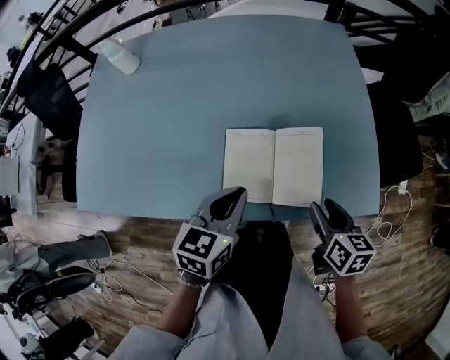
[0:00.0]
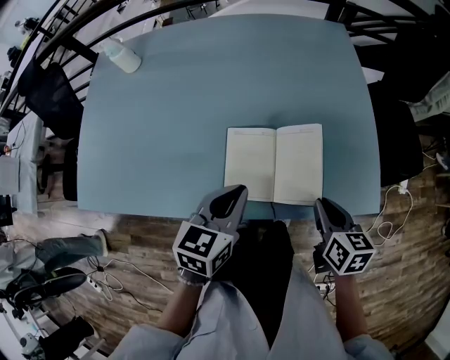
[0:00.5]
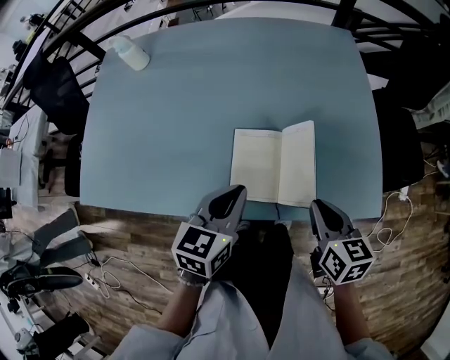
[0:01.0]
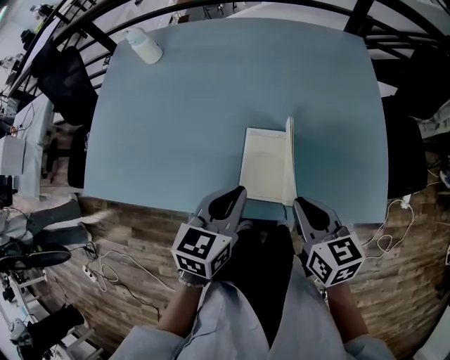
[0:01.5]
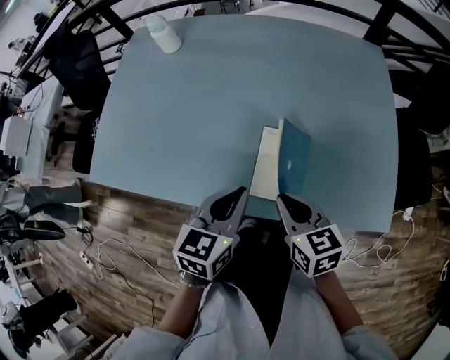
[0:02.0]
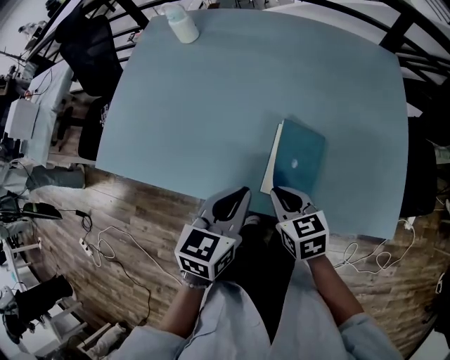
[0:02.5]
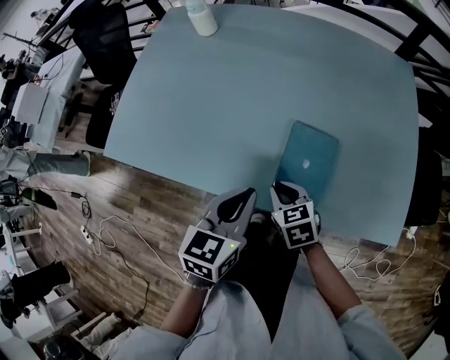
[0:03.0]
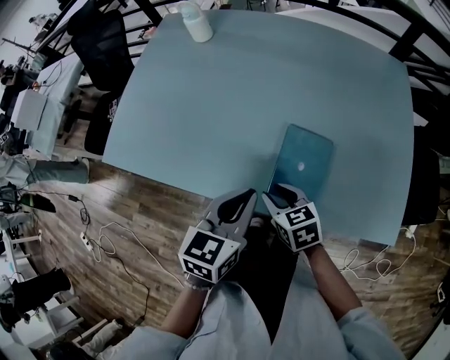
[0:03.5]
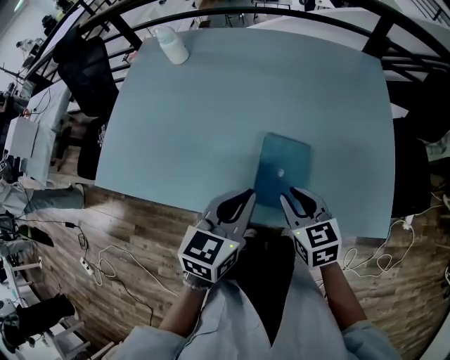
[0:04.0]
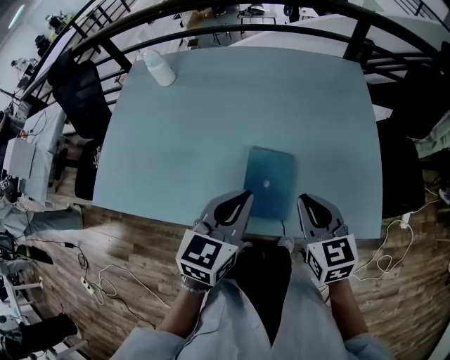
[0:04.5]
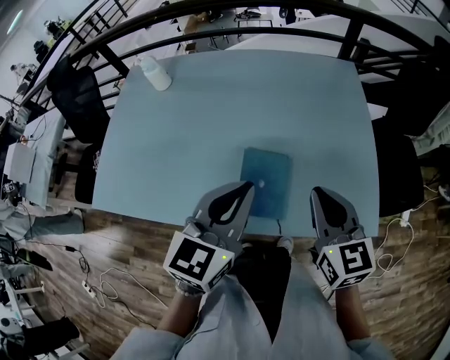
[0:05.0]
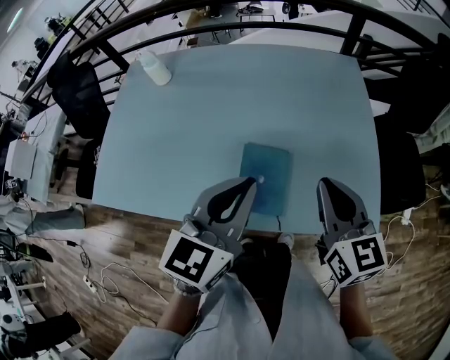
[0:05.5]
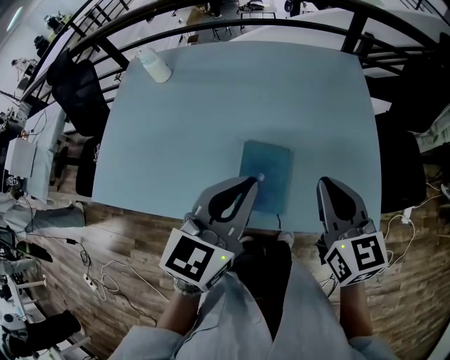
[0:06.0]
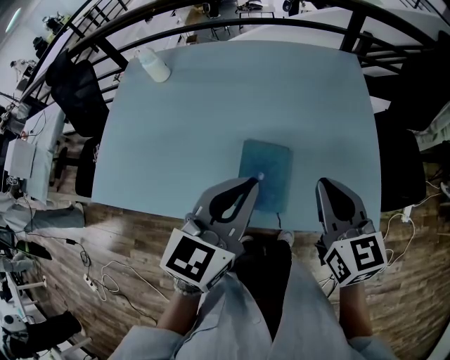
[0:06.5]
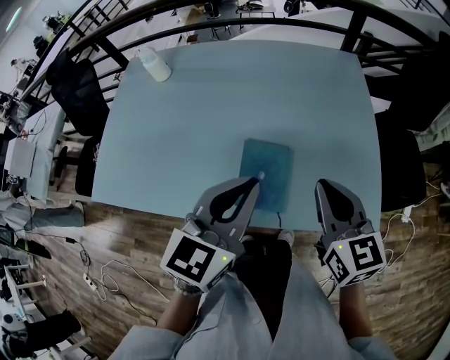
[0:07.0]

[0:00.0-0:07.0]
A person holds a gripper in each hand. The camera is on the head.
0:00.0 to 0:02.0: The right gripper shifts approximately 20 cm to the left, changes its angle by about 30 degrees, and closes its fingers; the left gripper heads to the left, covering roughly 5 cm.
0:02.0 to 0:03.5: The right gripper moves to the left and downward, roughly 10 cm, and opens its fingers.
0:03.5 to 0:05.0: The left gripper travels upward and to the right by approximately 15 cm, and swivels approximately 20 degrees. Meanwhile the right gripper is displaced upward and to the right by roughly 30 cm, swivels roughly 40 degrees, and closes.
0:05.0 to 0:07.0: The grippers stay close to where they were, moving slightly.

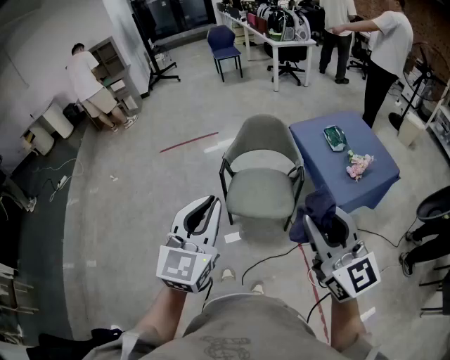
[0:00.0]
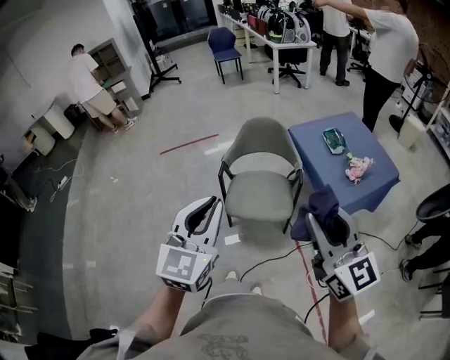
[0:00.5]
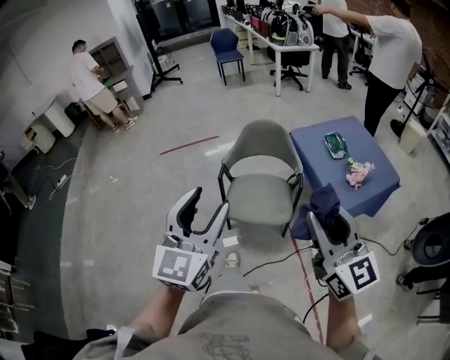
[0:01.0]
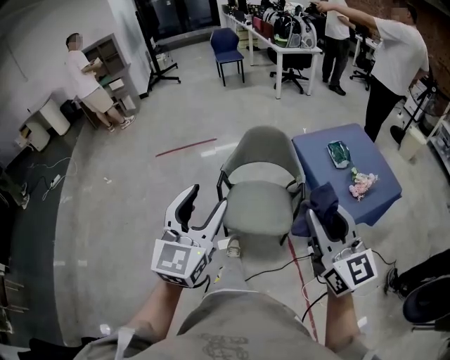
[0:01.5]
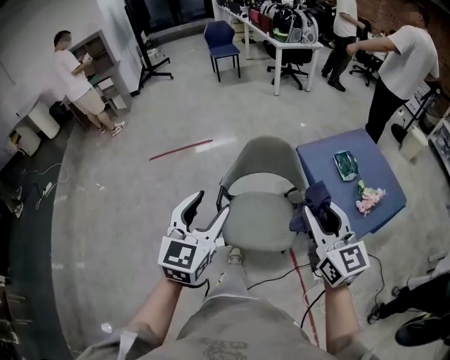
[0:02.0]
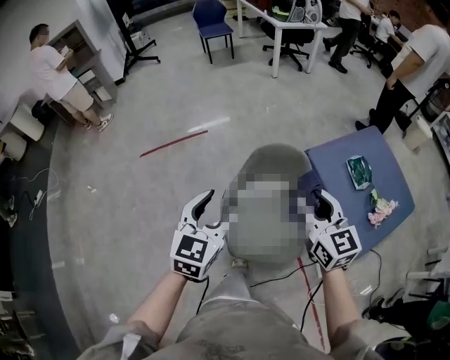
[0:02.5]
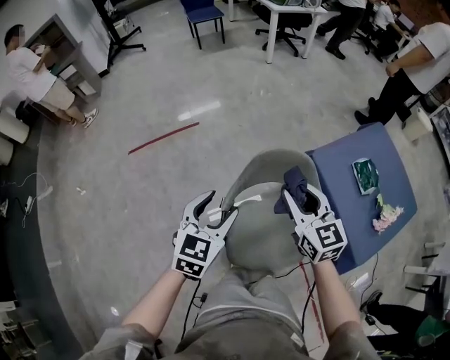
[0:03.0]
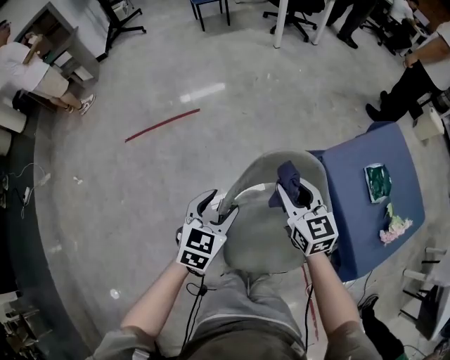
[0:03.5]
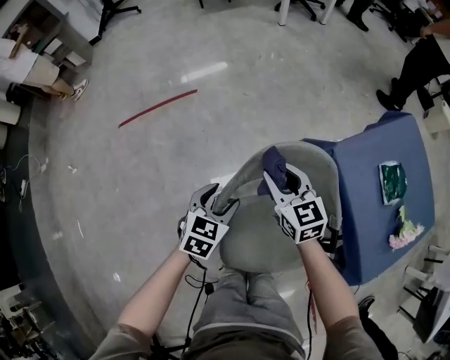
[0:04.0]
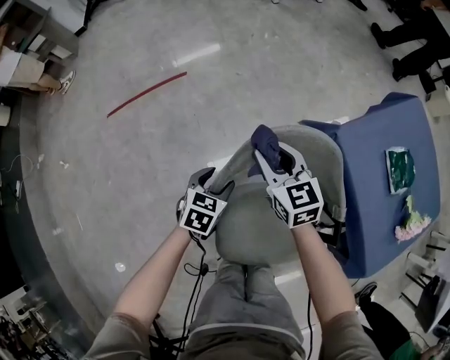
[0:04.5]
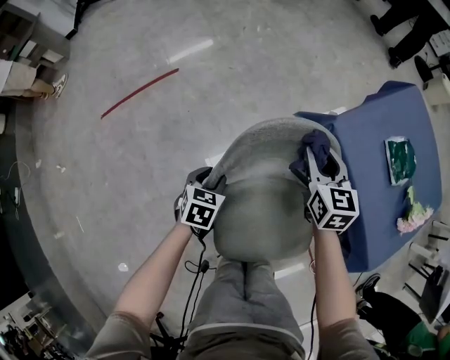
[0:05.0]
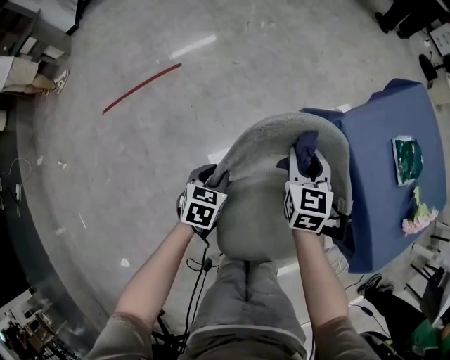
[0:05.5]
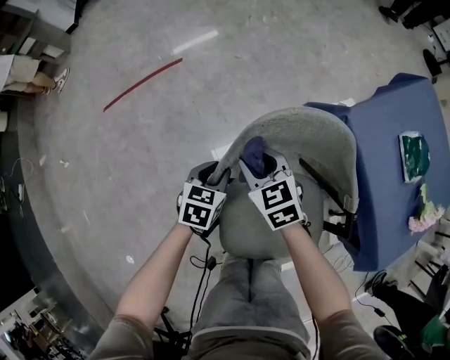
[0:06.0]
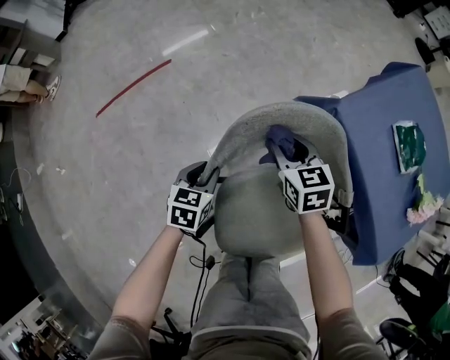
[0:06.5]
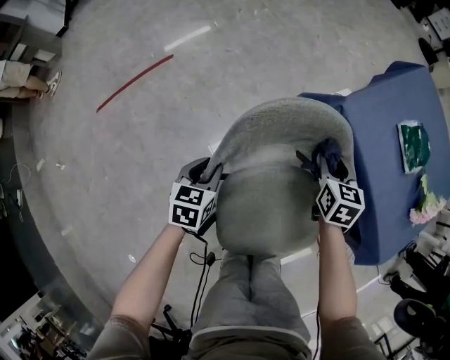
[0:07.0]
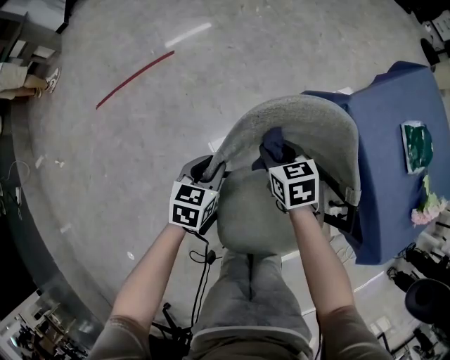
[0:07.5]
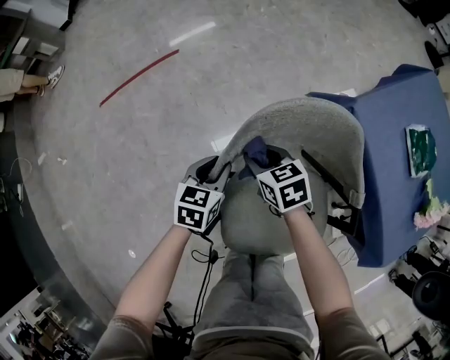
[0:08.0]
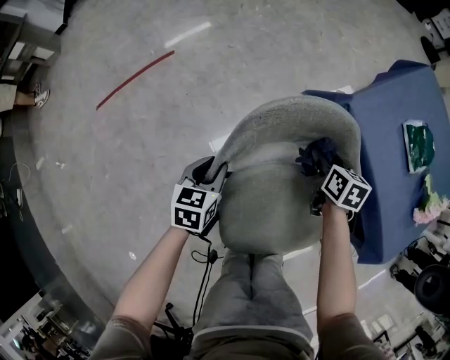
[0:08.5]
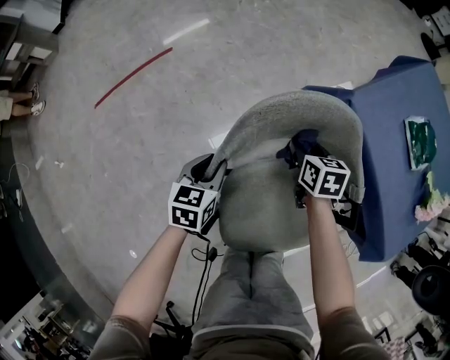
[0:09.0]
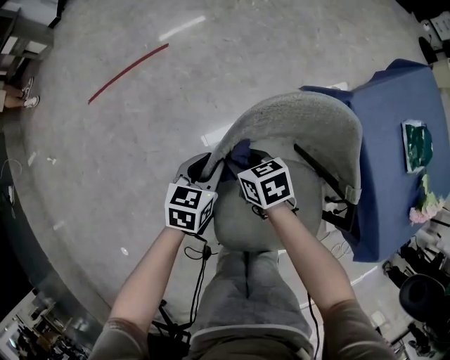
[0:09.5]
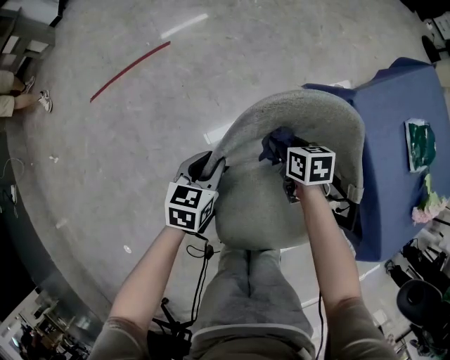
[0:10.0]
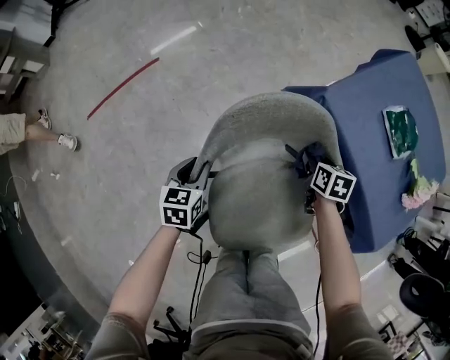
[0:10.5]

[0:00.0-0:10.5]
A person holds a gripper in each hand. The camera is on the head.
0:00.0 to 0:02.0: The grippers both shift forward by about 25 cm. The left gripper opens up.
0:02.0 to 0:04.0: The right gripper shifts approximately 50 cm forward and downward, and swivels about 20 degrees, while the left gripper goes some 50 cm downward and forward, and angles its fingers downward, by about 30 degrees.
0:04.0 to 0:06.5: The left gripper goes about 15 cm downward, and closes its fingers. The right gripper moves left and right over some 20 cm, changing direction 2 times.
0:06.5 to 0:08.5: The right gripper moves approximately 15 cm, and rotates roughly 30 degrees.
0:08.5 to 0:10.5: The right gripper reaches about 25 cm to the left, then returns.

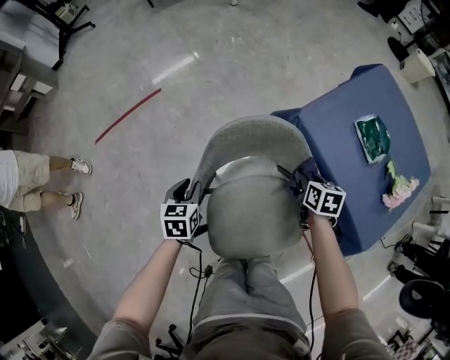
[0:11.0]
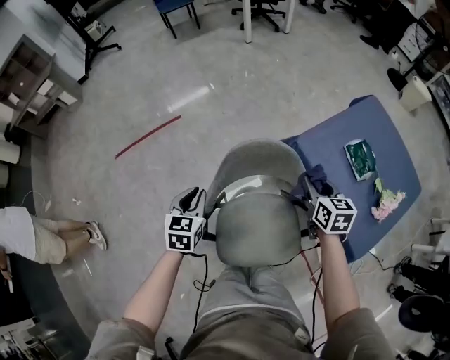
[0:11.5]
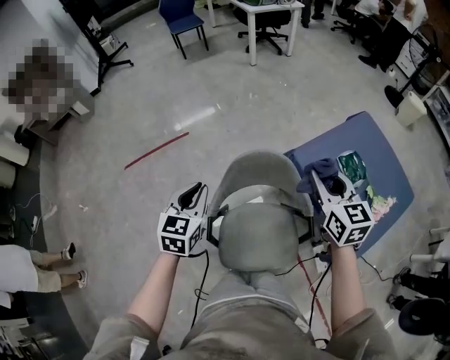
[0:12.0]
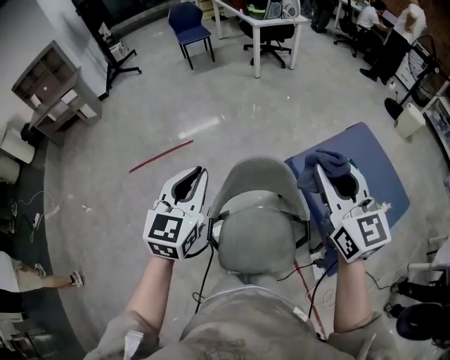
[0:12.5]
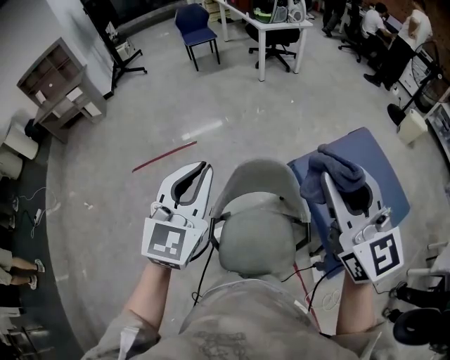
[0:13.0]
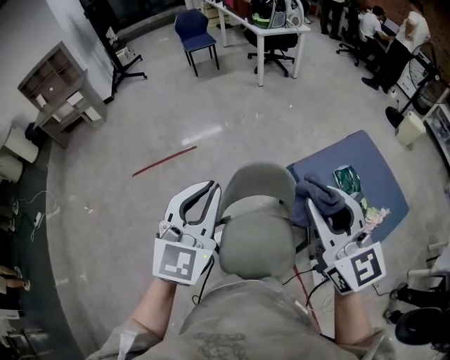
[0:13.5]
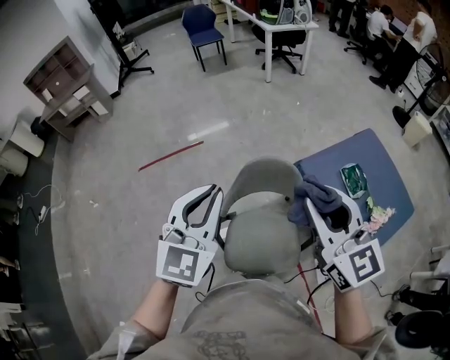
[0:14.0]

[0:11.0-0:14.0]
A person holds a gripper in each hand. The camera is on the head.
0:11.0 to 0:12.5: The two grippers go about 50 cm upward. The right gripper angles its fingers upward, by roughly 50 degrees. The left gripper tilts its fingers approximately 40 degrees upward.
0:12.5 to 0:14.0: The left gripper shifts roughly 5 cm backward; the right gripper shifts roughly 10 cm backward and to the left.

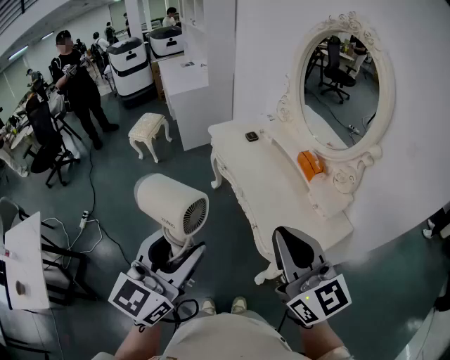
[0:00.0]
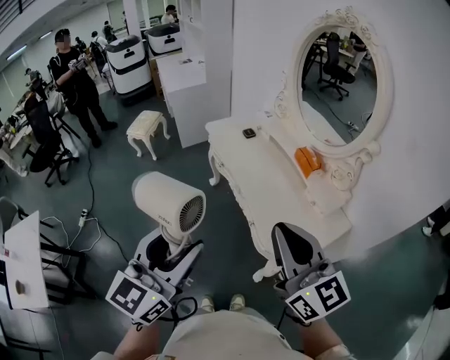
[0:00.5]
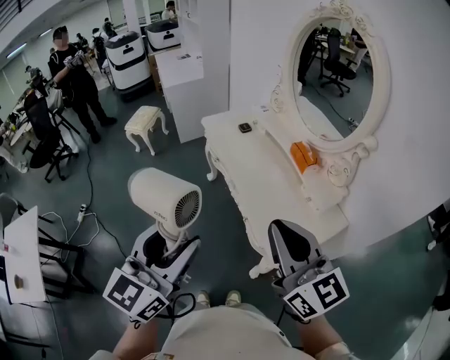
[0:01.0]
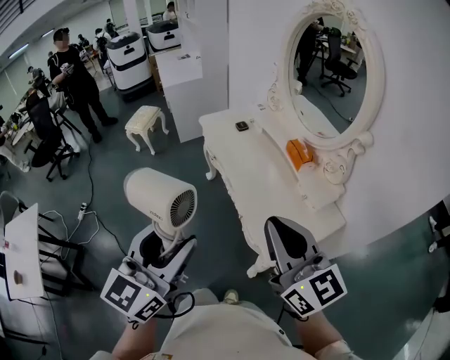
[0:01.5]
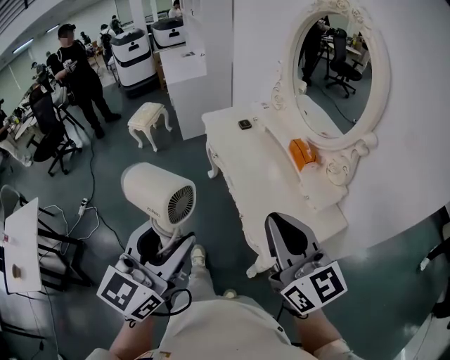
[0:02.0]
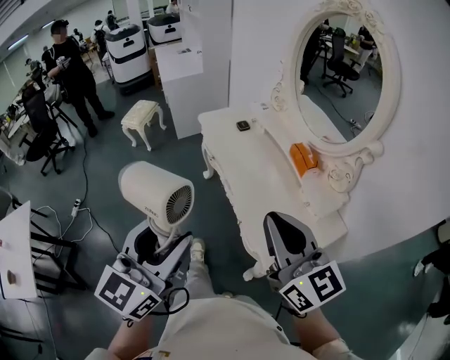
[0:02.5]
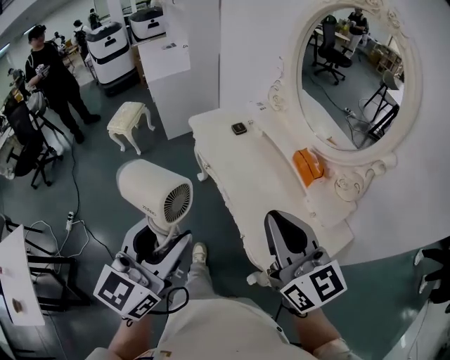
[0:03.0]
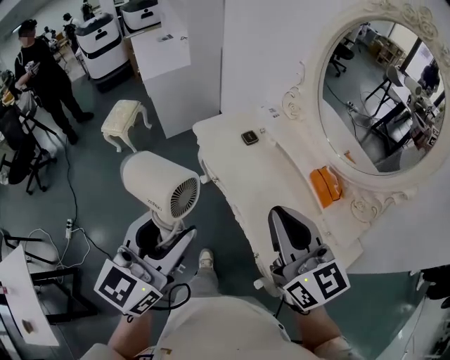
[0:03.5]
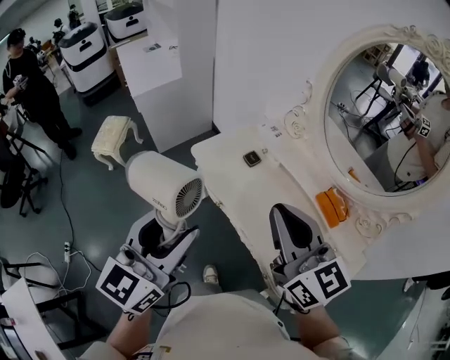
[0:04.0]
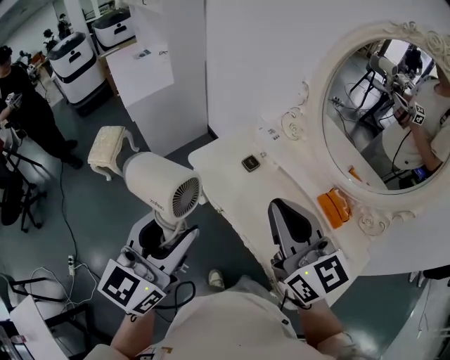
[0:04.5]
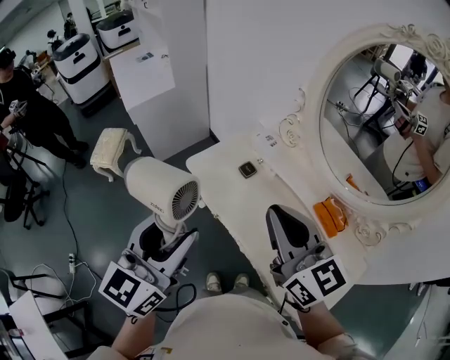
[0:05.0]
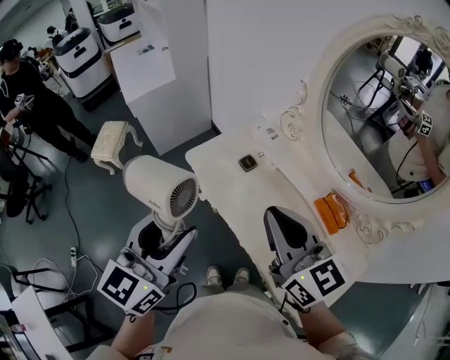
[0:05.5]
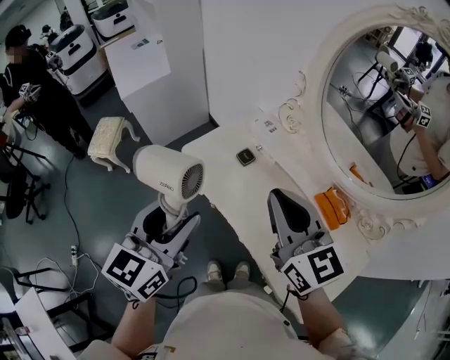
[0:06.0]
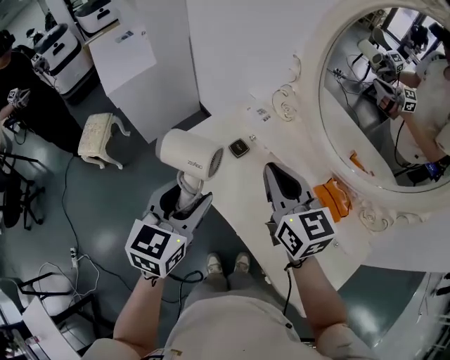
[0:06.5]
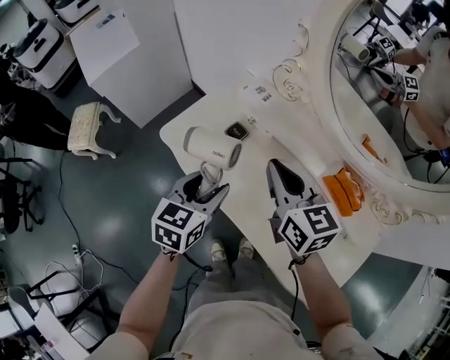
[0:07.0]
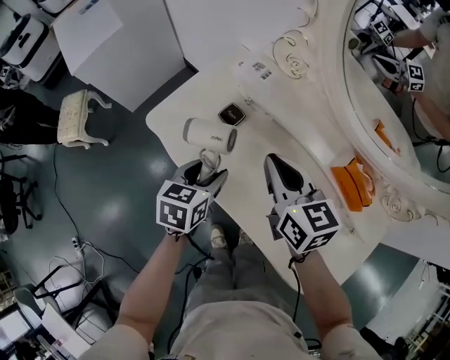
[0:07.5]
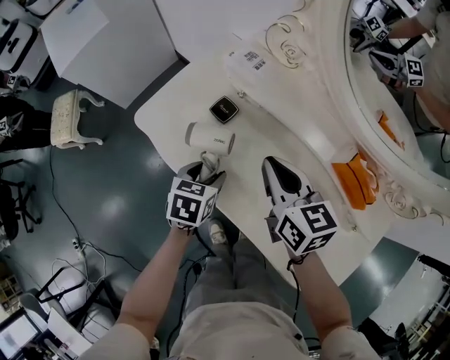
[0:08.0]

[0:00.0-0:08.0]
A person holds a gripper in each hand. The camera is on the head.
0:00.0 to 0:02.0: Both grippers travel together to the right, approximately 5 cm.
0:02.0 to 0:04.0: The pair of grippers is taken forward, roughly 40 cm.
0:04.0 to 0:06.0: Both grippers move forward, approximately 10 cm.
0:06.0 to 0:08.0: The two grippers go approximately 35 cm downward and forward. The left gripper tilts its fingers roughly 40 degrees downward, while the right gripper rotates about 30 degrees.
